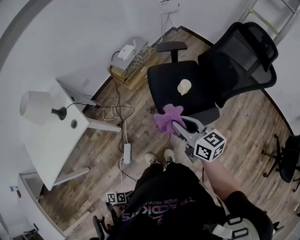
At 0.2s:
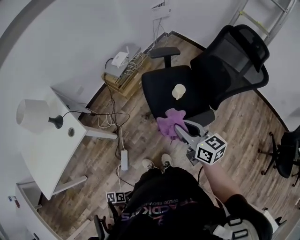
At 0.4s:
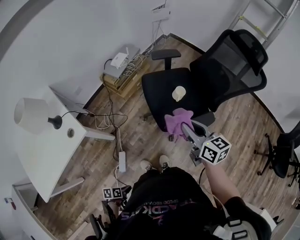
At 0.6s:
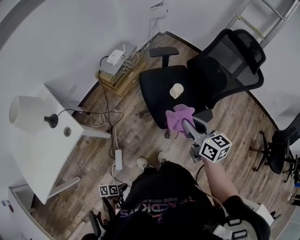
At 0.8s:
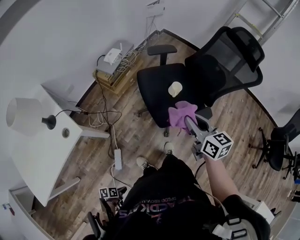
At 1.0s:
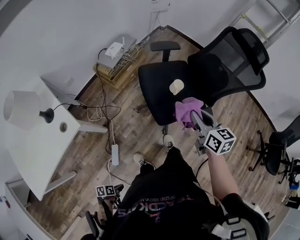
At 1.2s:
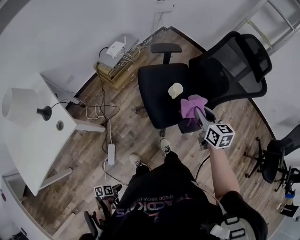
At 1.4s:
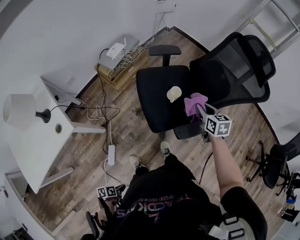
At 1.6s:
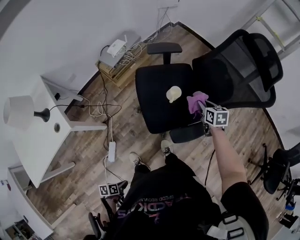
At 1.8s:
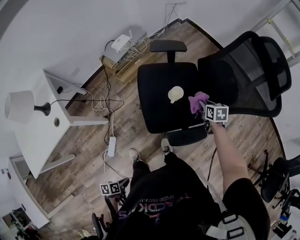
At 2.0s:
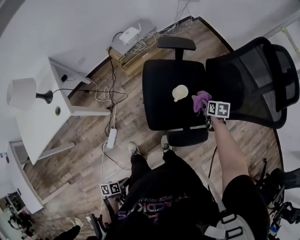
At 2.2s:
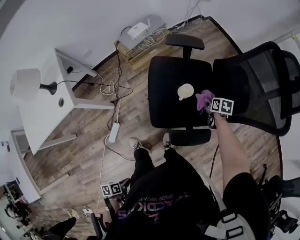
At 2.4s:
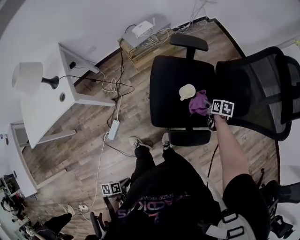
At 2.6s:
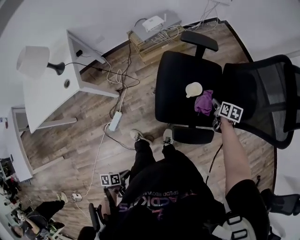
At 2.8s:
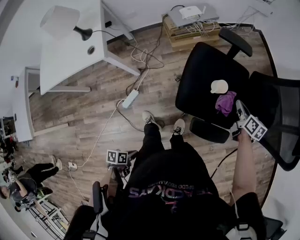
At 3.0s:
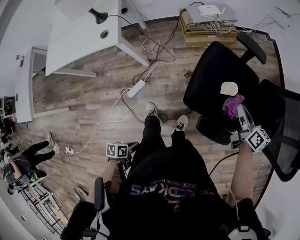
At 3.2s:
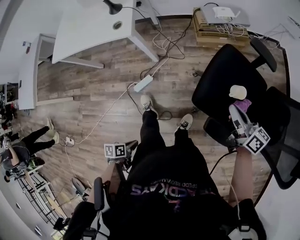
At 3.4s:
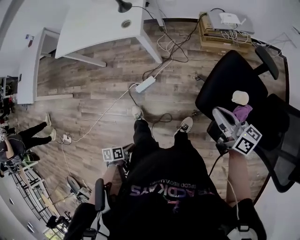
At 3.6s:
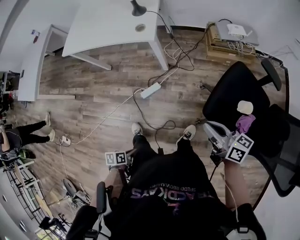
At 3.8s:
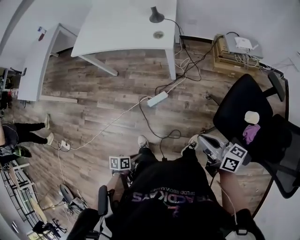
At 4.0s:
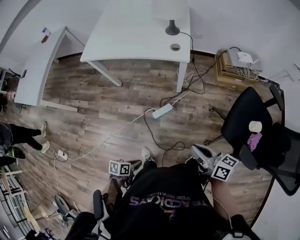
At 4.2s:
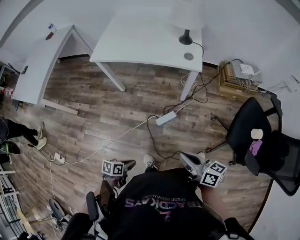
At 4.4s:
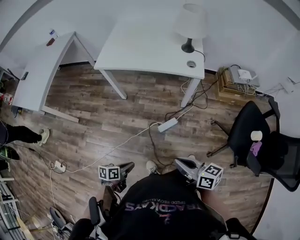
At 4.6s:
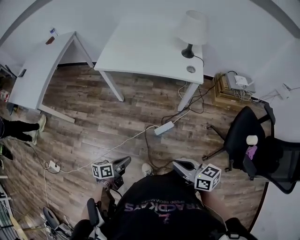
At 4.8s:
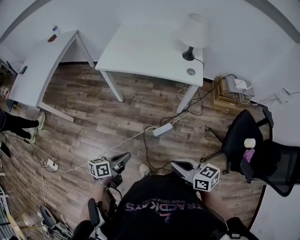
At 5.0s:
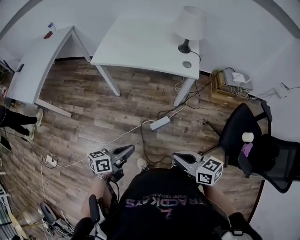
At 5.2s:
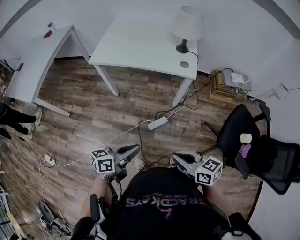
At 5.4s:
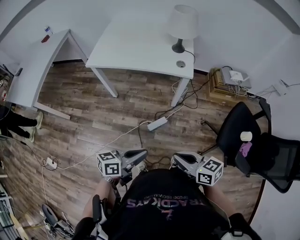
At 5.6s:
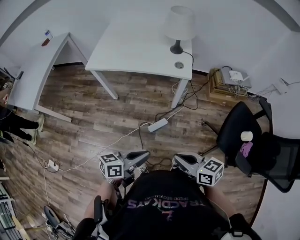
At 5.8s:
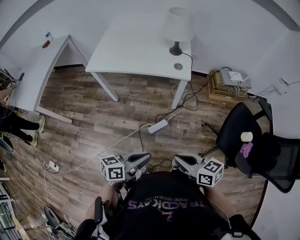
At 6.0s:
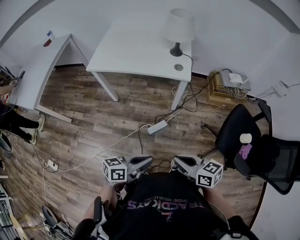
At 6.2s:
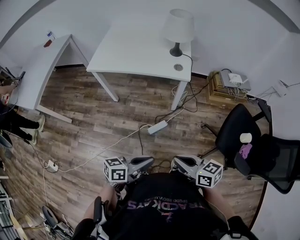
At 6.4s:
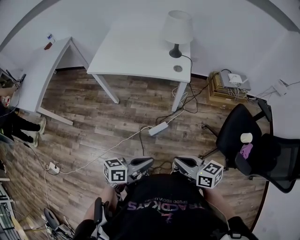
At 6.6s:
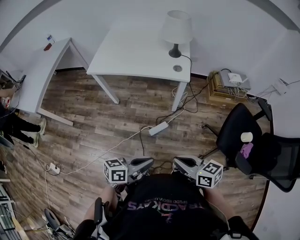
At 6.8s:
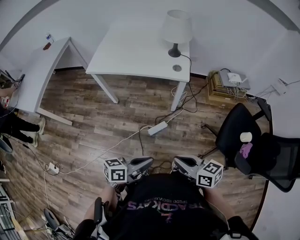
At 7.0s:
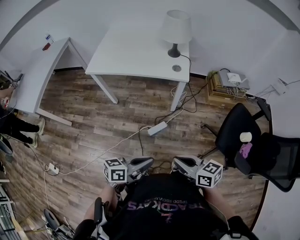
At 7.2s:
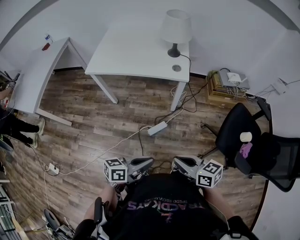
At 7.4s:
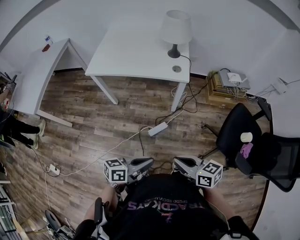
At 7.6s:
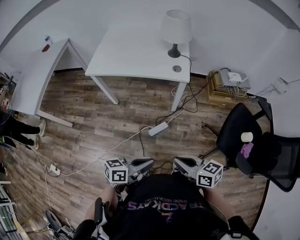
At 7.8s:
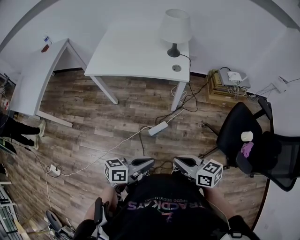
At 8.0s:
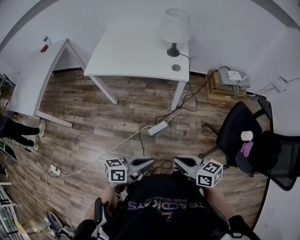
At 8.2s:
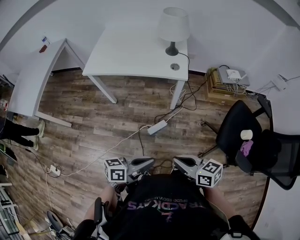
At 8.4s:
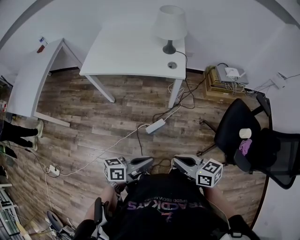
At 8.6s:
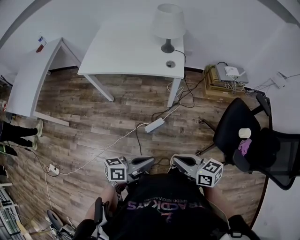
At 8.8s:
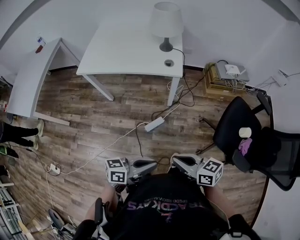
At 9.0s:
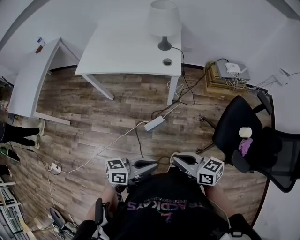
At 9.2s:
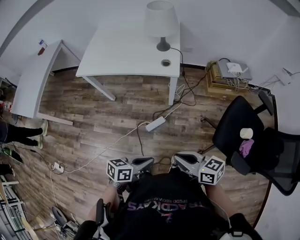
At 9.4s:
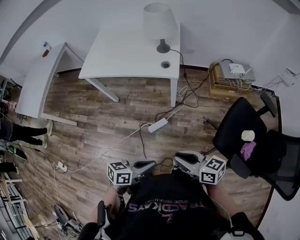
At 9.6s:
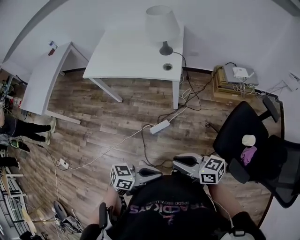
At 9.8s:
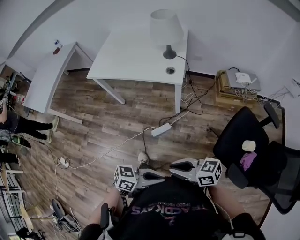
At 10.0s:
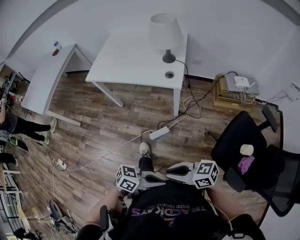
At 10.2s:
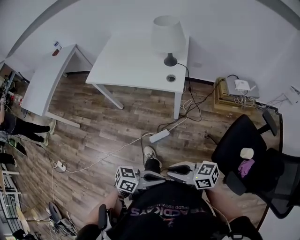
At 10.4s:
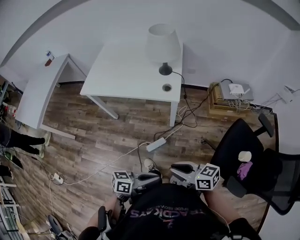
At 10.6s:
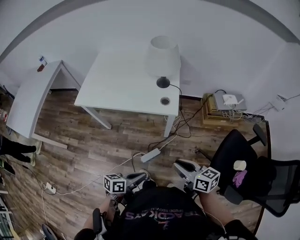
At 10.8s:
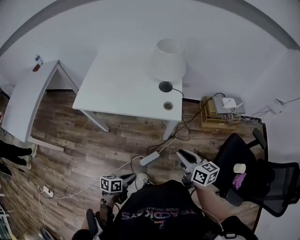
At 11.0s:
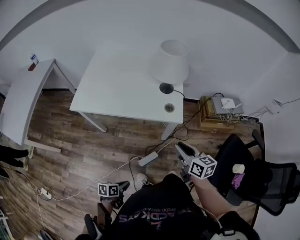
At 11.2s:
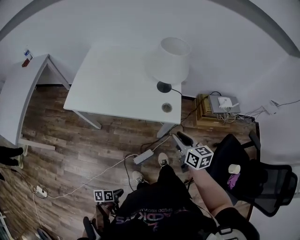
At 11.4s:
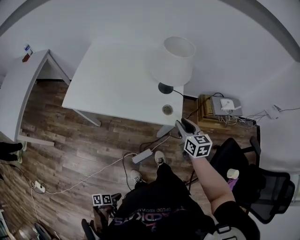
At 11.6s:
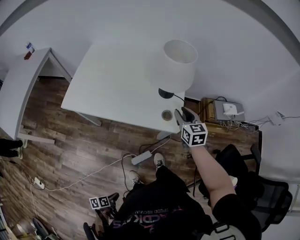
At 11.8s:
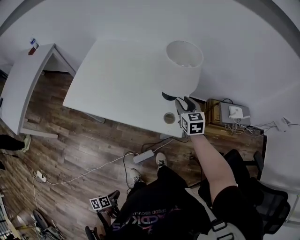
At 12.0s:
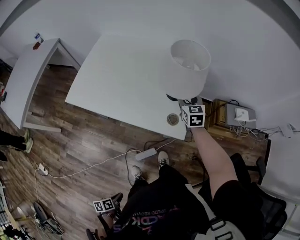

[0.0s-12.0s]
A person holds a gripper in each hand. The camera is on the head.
0.0s to 1.6s: The right gripper ends up roughly 35 cm from where it was, and tips its fingers downward by roughly 30 degrees.
1.6s to 3.0s: The right gripper moves about 15 cm downward and comes back, changes its angle by about 40 degrees, and opens, then closes again.
3.0s to 4.4s: The right gripper changes place by approximately 70 cm, and turns by approximately 50 degrees.
4.4s to 6.0s: The right gripper ends up roughly 10 cm from where it was.
7.6s to 9.0s: The right gripper ends up about 5 cm from where it was.
9.0s to 10.4s: The right gripper changes place by some 10 cm.
10.4s to 12.0s: The right gripper changes place by roughly 60 cm, turns by about 50 degrees, and opens up.

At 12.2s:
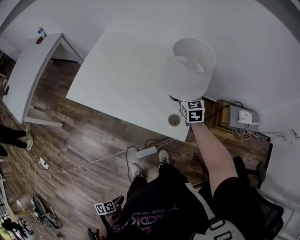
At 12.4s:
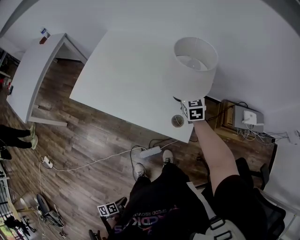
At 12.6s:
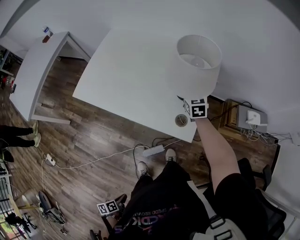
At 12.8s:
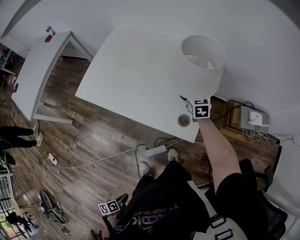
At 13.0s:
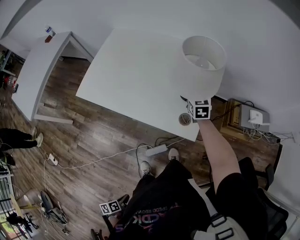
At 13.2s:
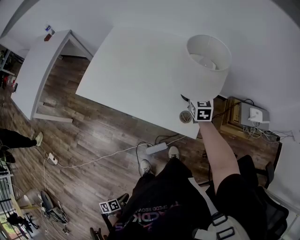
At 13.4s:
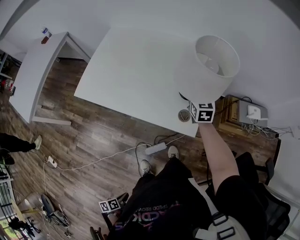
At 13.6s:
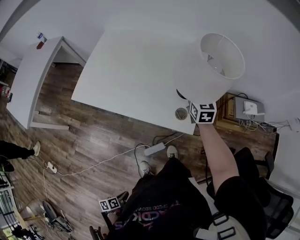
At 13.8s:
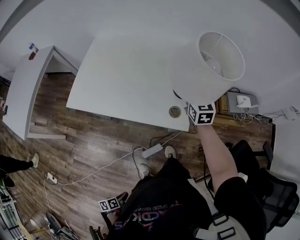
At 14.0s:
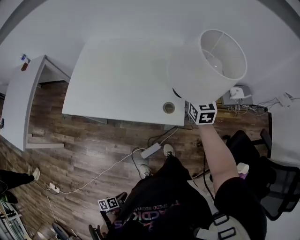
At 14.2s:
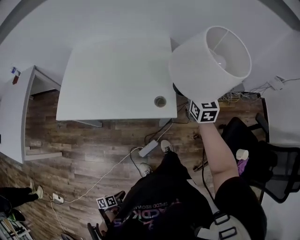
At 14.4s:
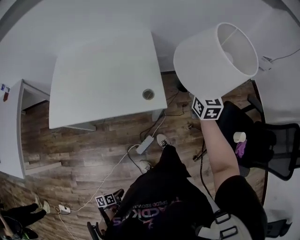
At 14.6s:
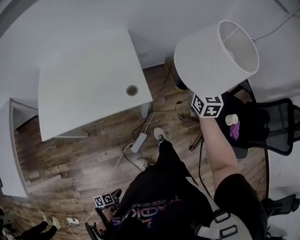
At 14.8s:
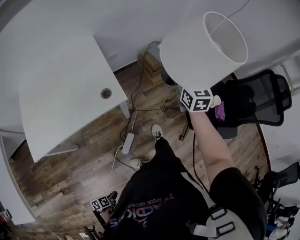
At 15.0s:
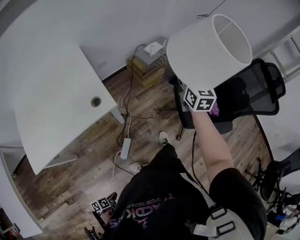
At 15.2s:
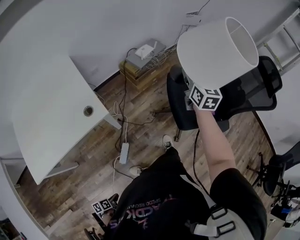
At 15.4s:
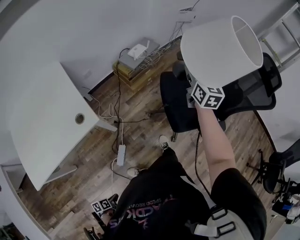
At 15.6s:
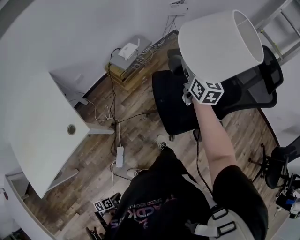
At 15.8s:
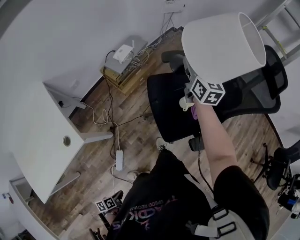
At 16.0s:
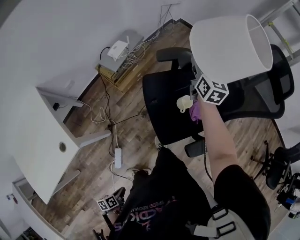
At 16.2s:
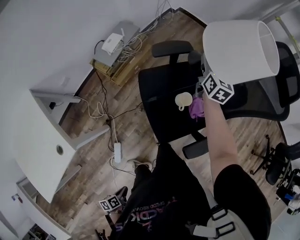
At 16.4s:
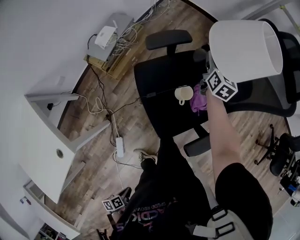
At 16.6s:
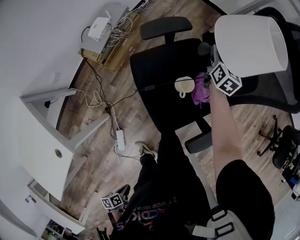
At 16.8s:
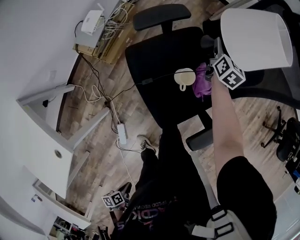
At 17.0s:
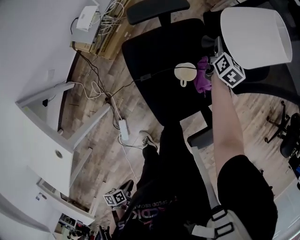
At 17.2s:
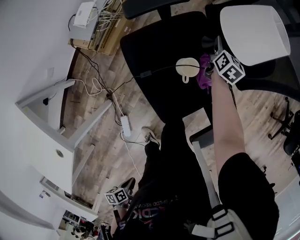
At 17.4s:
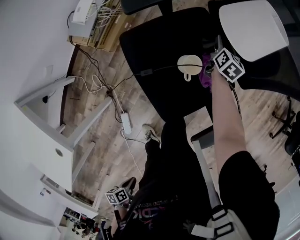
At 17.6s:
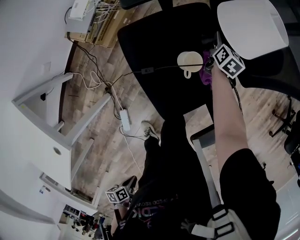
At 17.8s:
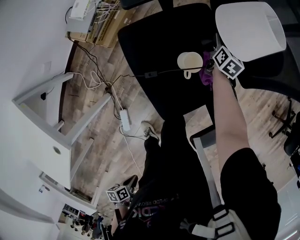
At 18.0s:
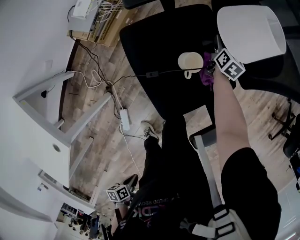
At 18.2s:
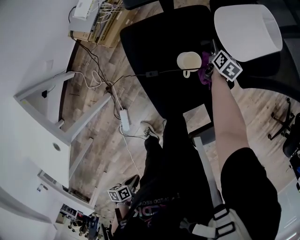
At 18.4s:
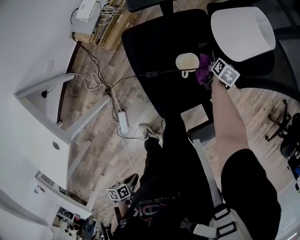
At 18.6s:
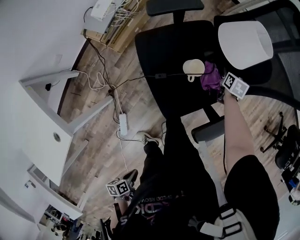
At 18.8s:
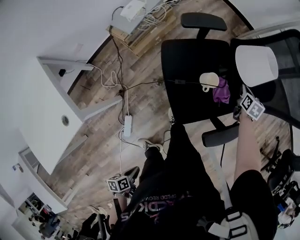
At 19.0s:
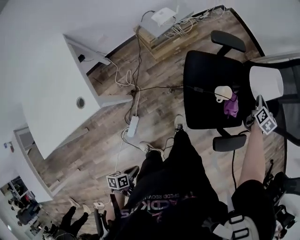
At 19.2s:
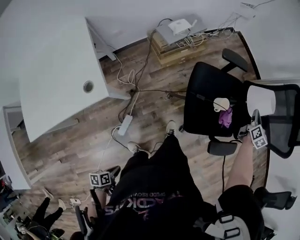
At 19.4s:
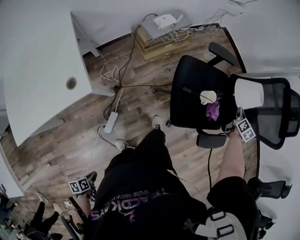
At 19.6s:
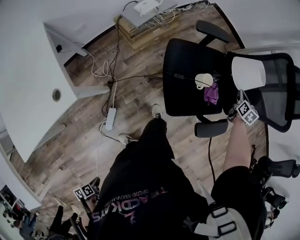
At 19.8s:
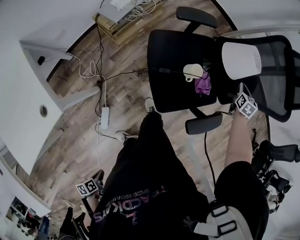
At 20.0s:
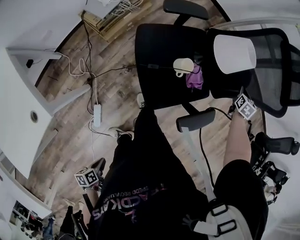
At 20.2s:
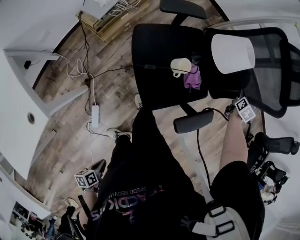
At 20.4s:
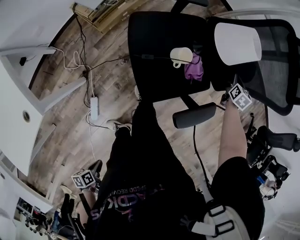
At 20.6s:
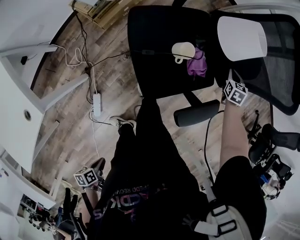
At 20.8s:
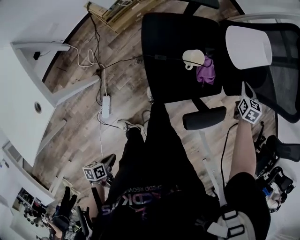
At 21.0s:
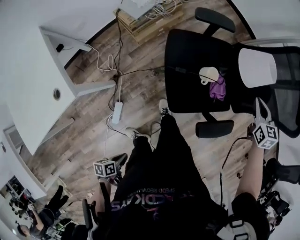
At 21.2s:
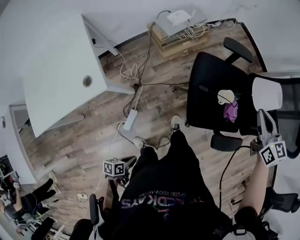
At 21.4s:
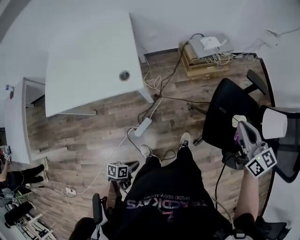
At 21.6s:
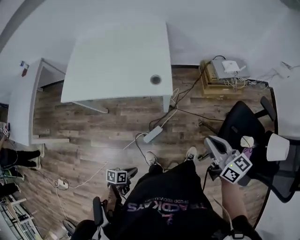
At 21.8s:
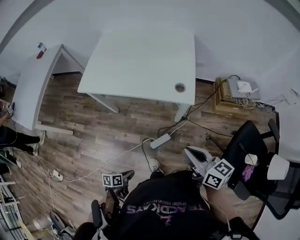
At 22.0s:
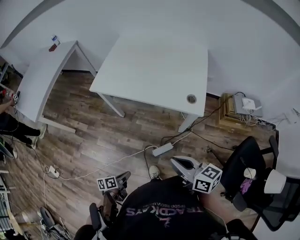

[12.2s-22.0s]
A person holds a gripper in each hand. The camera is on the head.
12.2s to 13.6s: The right gripper shifts approximately 5 cm upward.
13.6s to 15.0s: The right gripper moves some 50 cm, and swivels about 50 degrees.
15.0s to 16.4s: The right gripper moves roughly 60 cm, and rotates roughly 40 degrees.
16.4s to 17.8s: The right gripper shifts approximately 25 cm downward, and swivels roughly 20 degrees.
17.8s to 19.2s: The right gripper heads upward, covering roughly 25 cm, changes its angle by roughly 20 degrees, and closes its fingers.
19.2s to 20.6s: The right gripper shifts about 15 cm downward, and swivels roughly 40 degrees.
20.6s to 22.0s: The right gripper changes place by approximately 1 m, and angles its fingers upward, by roughly 40 degrees.

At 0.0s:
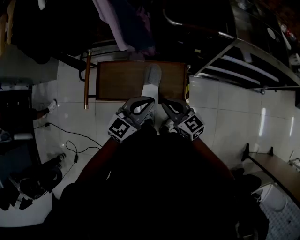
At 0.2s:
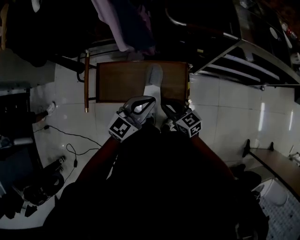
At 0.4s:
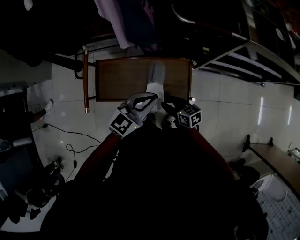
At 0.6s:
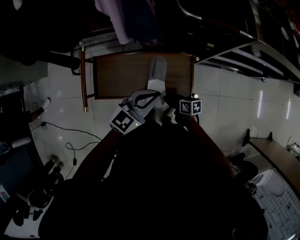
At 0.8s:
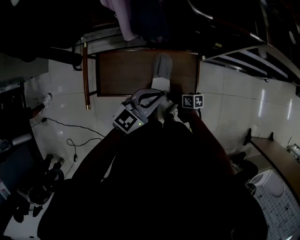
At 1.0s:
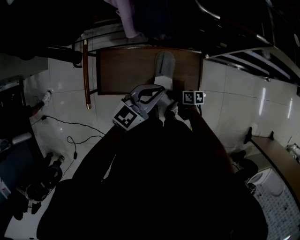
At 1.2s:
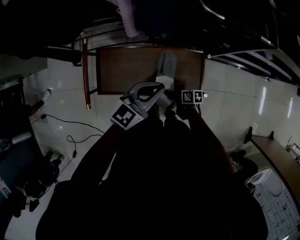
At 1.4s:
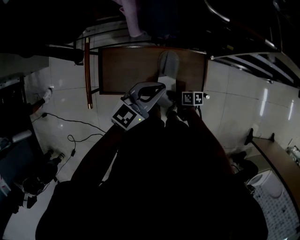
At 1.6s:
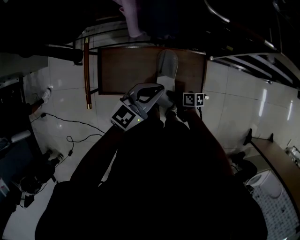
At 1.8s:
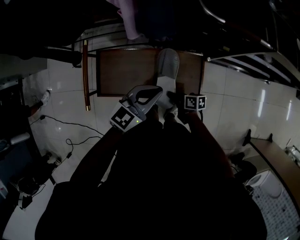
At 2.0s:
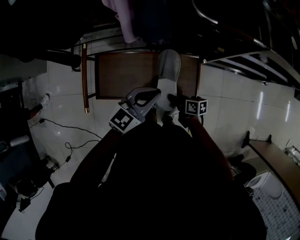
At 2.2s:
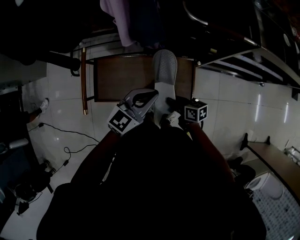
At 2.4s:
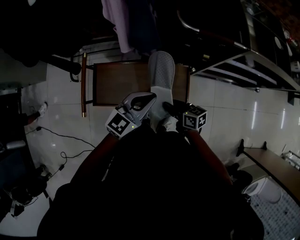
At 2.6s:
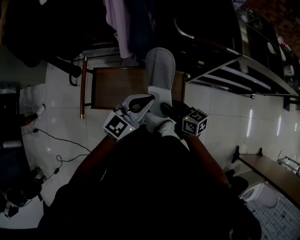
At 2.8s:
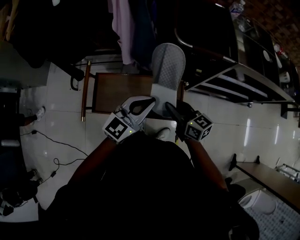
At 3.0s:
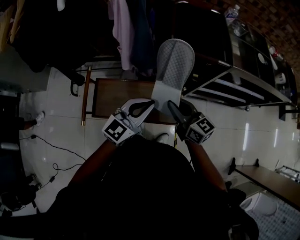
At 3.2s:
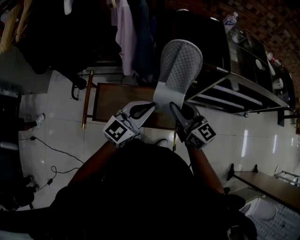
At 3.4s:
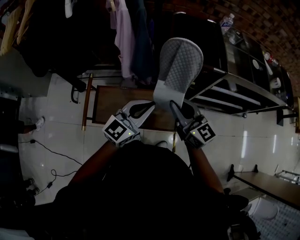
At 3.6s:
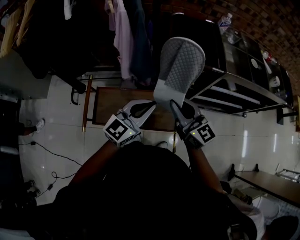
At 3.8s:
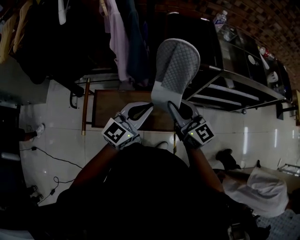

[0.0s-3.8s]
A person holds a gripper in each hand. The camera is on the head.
0.0s to 1.2s: The right gripper goes about 30 cm downward, twists roughly 60 degrees clockwise, seen from behind, and opens its fingers; the left gripper goes some 15 cm forward, downward and to the left.
1.2s to 2.6s: The left gripper travels upward by roughly 10 cm. The right gripper is displaced upward by some 25 cm, turns by approximately 40 degrees, and closes up.
2.6s to 3.8s: The left gripper goes about 10 cm upward; the right gripper goes roughly 20 cm upward, and changes its angle by some 40 degrees.
